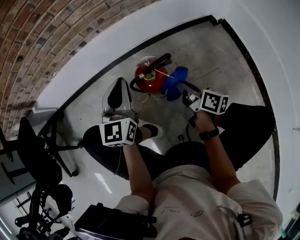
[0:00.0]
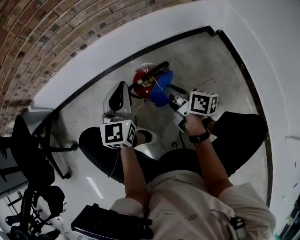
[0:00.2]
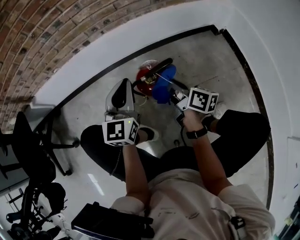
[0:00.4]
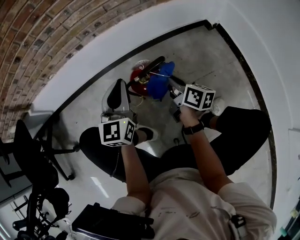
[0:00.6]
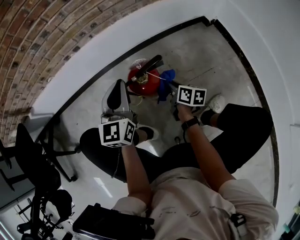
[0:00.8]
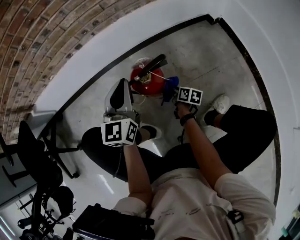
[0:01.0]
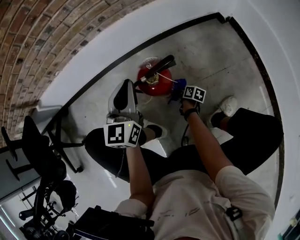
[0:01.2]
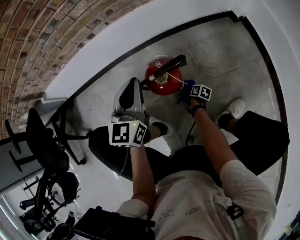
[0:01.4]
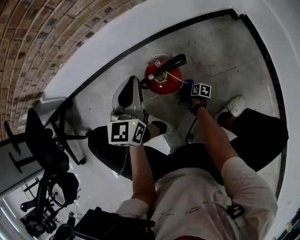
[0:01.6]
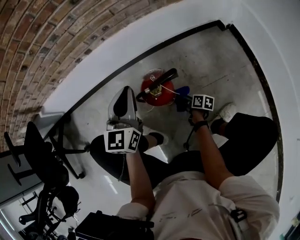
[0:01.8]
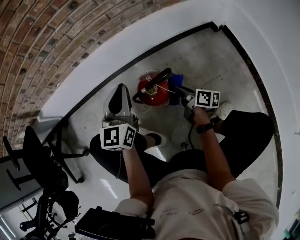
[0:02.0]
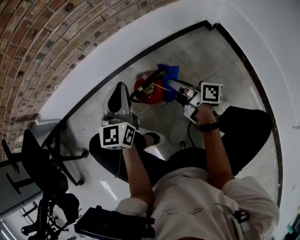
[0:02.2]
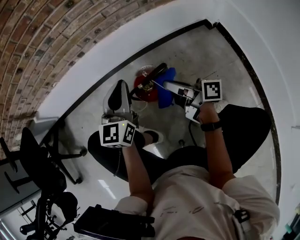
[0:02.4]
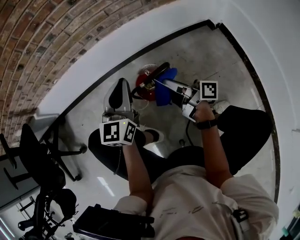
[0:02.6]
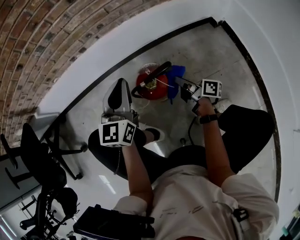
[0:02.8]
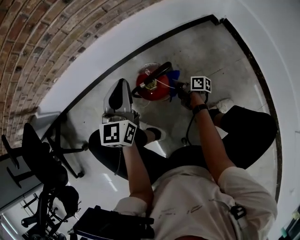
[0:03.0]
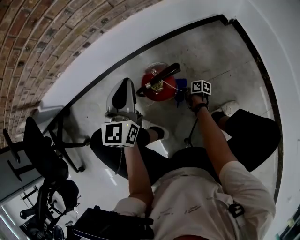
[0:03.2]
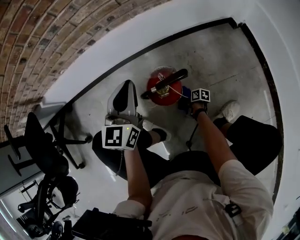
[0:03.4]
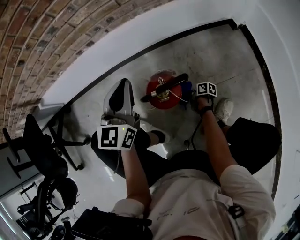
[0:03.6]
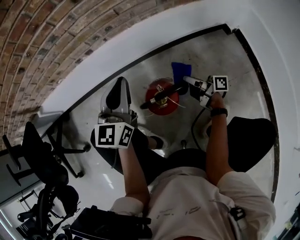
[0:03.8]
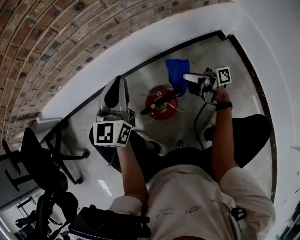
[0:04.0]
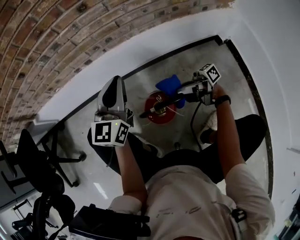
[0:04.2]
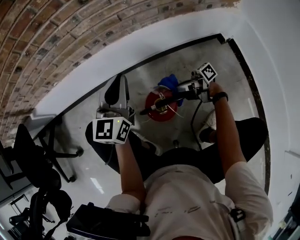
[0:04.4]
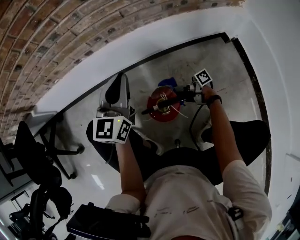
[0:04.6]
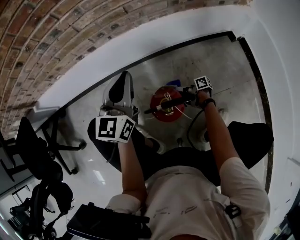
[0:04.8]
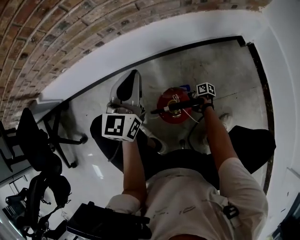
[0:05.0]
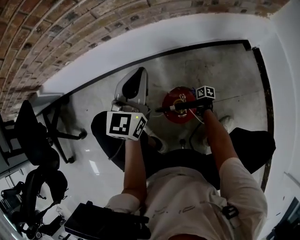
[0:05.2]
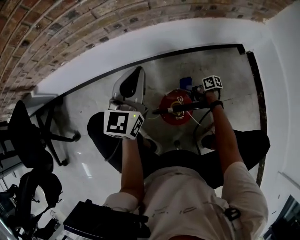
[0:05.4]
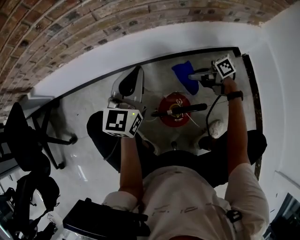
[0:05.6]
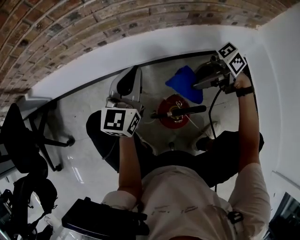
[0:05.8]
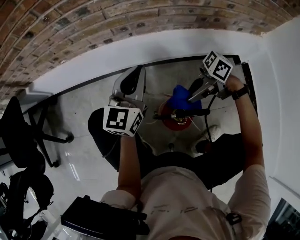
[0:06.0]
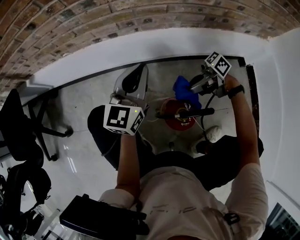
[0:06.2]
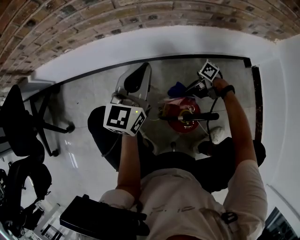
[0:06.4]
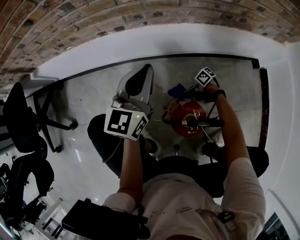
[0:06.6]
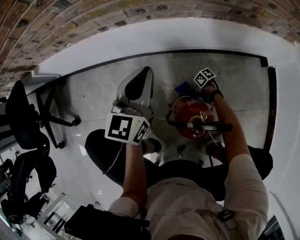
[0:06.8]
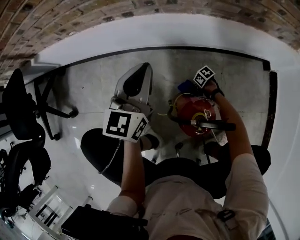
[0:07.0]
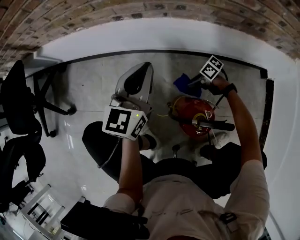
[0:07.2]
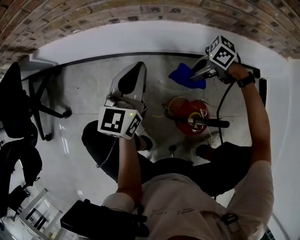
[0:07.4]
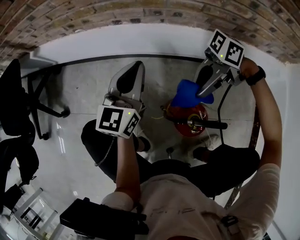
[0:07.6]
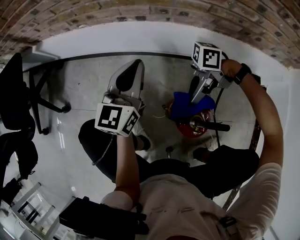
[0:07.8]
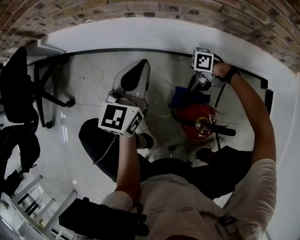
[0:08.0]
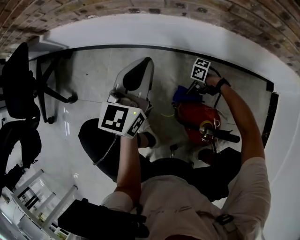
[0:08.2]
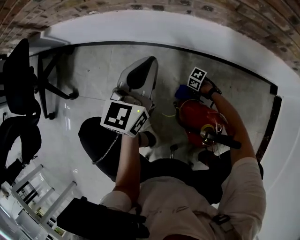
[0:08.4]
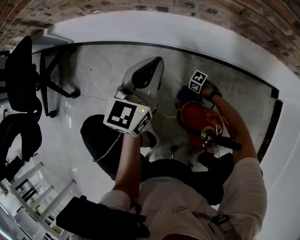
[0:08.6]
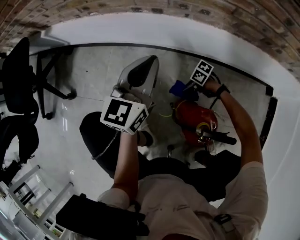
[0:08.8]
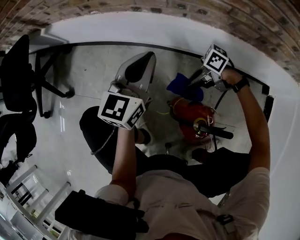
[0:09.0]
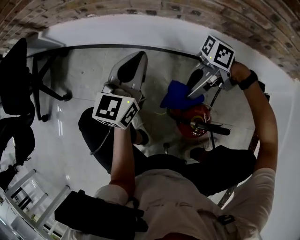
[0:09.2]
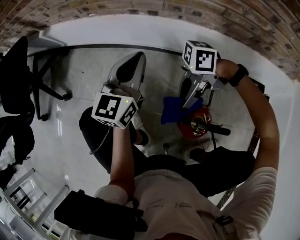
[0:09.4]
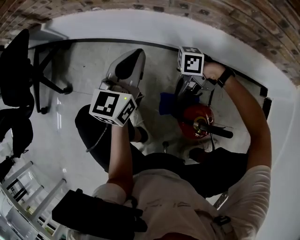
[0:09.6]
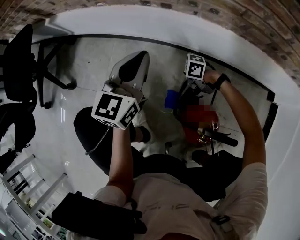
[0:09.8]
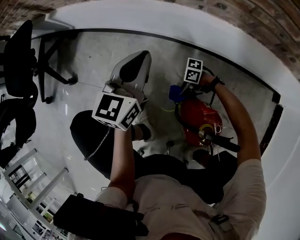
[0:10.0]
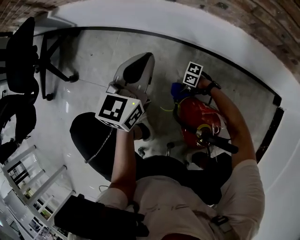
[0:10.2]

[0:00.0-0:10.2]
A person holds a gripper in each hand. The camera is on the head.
0.0 to 1.4 s: The right gripper heads downward, covering some 40 cm, and points its fingers some 40 degrees further downward.
1.4 to 3.0 s: The right gripper moves upward, about 20 cm, and angles its fingers upward, by about 30 degrees.
3.0 to 4.4 s: The right gripper goes up and down, about 40 cm each way, reversing 2 times, and swivels roughly 60 degrees. The left gripper moves forward, roughly 10 cm.
4.4 to 5.8 s: The right gripper goes downward and returns, some 35 cm each way, and swivels some 40 degrees.
5.8 to 7.2 s: The left gripper moves about 10 cm; the right gripper travels downward by roughly 30 cm, and turns by some 40 degrees.
7.2 to 8.8 s: The right gripper goes up and down, roughly 50 cm each way, reversing 2 times.
8.8 to 10.2 s: The right gripper goes upward and returns, some 30 cm each way; the left gripper moves about 5 cm.

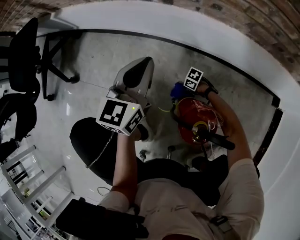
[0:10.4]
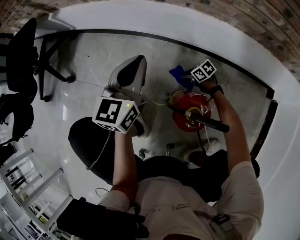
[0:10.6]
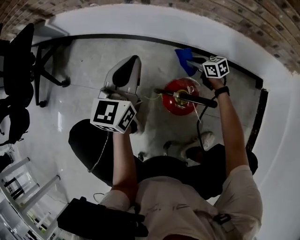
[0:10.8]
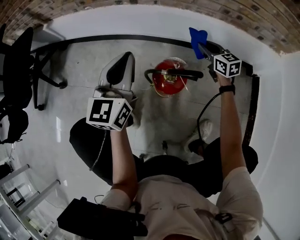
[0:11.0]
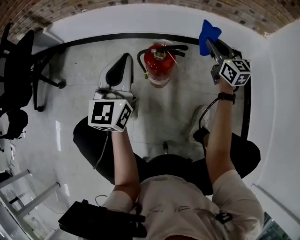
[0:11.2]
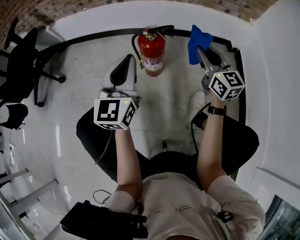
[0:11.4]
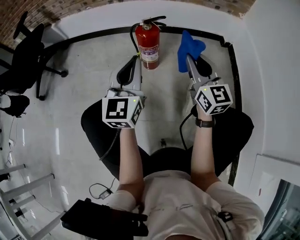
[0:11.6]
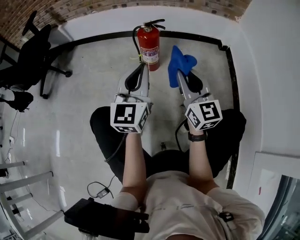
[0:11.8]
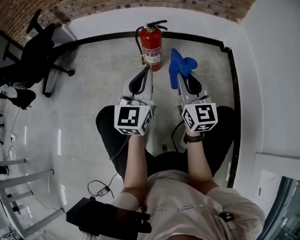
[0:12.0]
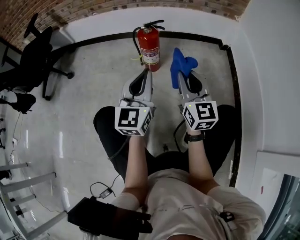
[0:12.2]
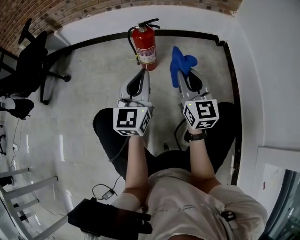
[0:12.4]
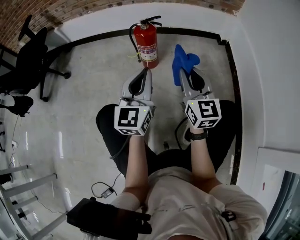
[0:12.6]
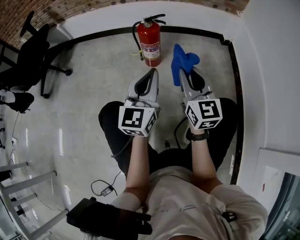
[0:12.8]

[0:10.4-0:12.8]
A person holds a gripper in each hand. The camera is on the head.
10.4 to 11.6 s: The left gripper moves roughly 50 cm, and swivels approximately 20 degrees, while the right gripper shifts roughly 60 cm upward, and points its fingers about 50 degrees further upward.
11.6 to 12.8 s: The grippers both shift backward by some 10 cm.

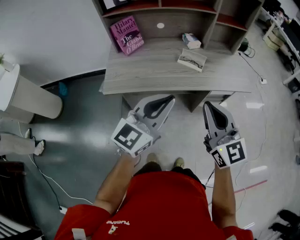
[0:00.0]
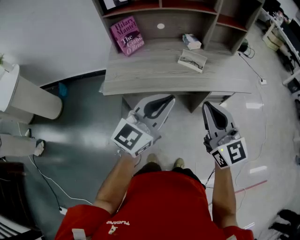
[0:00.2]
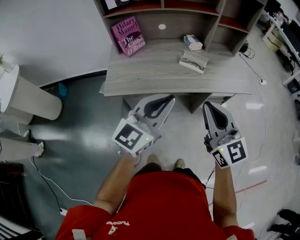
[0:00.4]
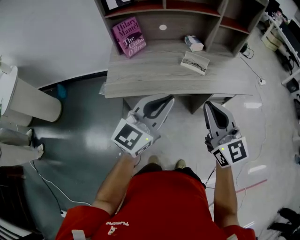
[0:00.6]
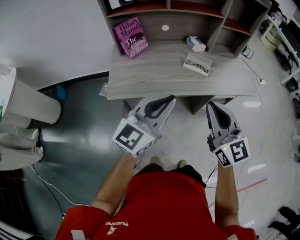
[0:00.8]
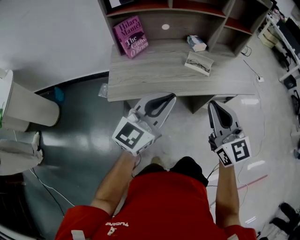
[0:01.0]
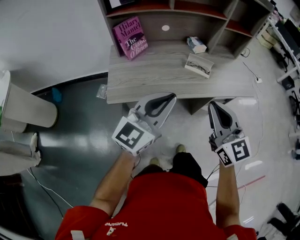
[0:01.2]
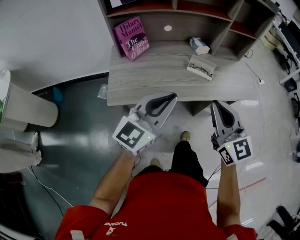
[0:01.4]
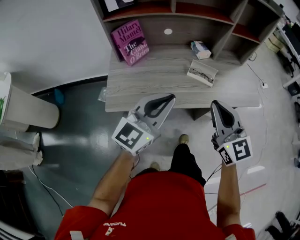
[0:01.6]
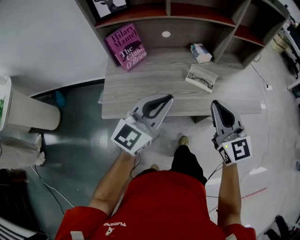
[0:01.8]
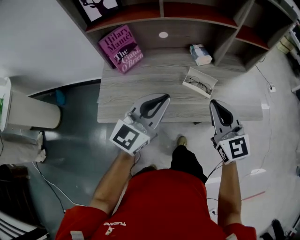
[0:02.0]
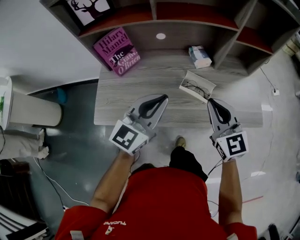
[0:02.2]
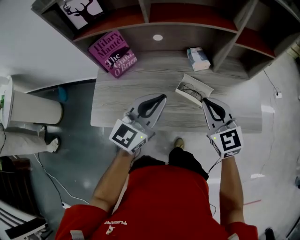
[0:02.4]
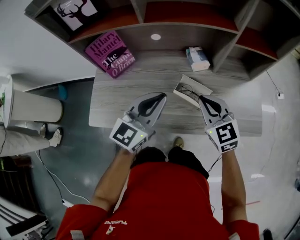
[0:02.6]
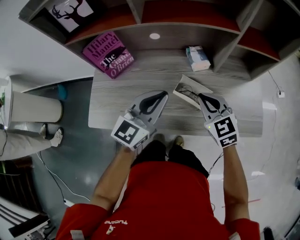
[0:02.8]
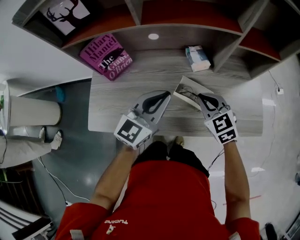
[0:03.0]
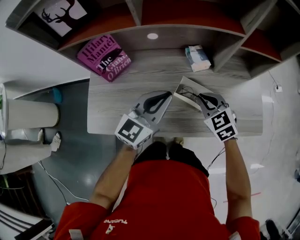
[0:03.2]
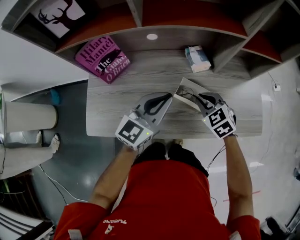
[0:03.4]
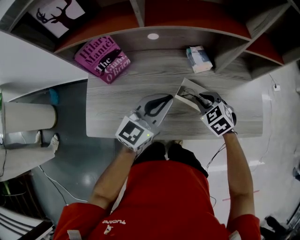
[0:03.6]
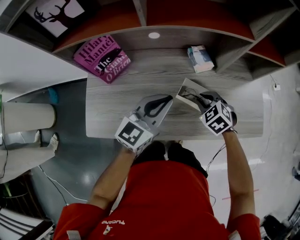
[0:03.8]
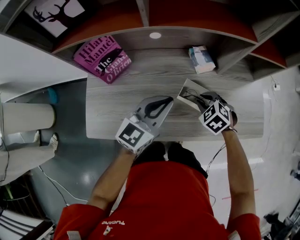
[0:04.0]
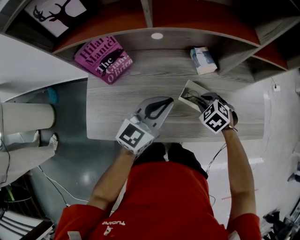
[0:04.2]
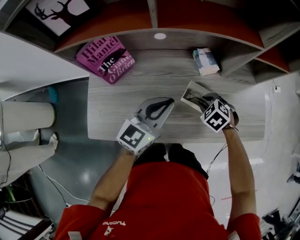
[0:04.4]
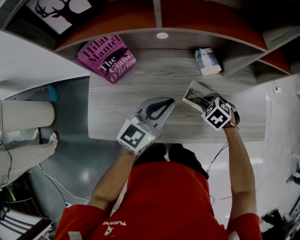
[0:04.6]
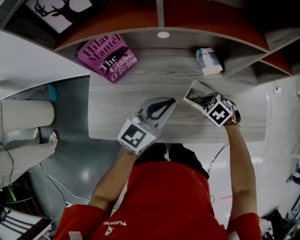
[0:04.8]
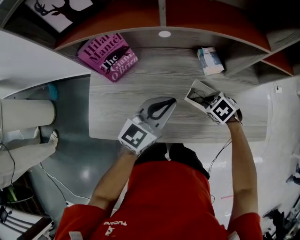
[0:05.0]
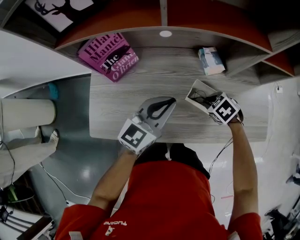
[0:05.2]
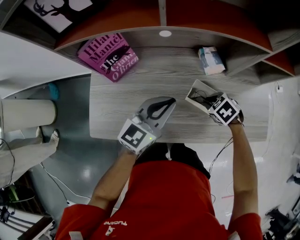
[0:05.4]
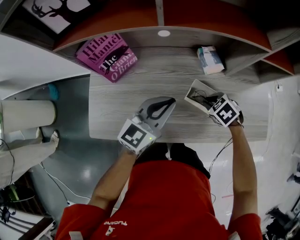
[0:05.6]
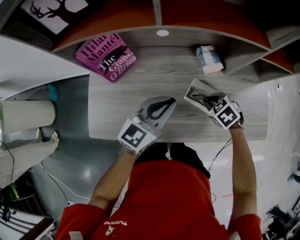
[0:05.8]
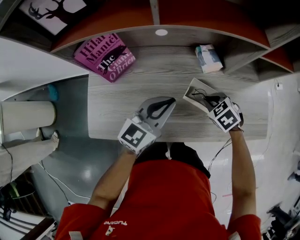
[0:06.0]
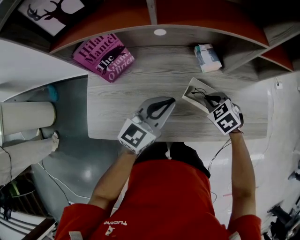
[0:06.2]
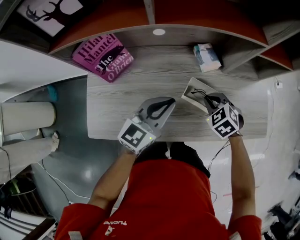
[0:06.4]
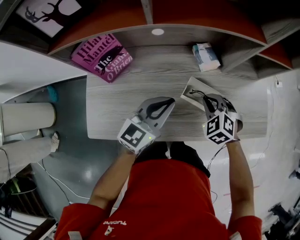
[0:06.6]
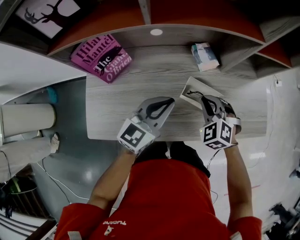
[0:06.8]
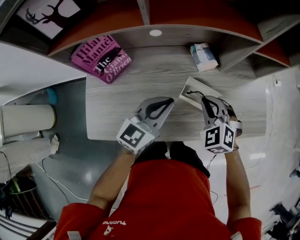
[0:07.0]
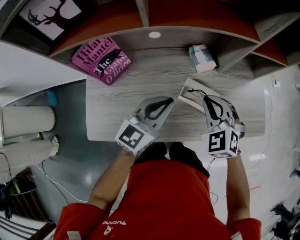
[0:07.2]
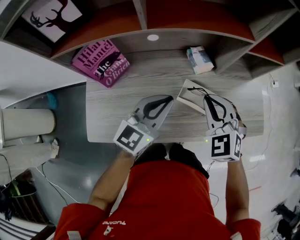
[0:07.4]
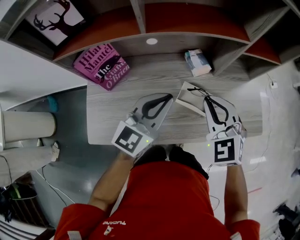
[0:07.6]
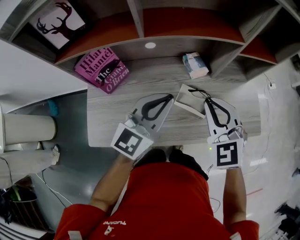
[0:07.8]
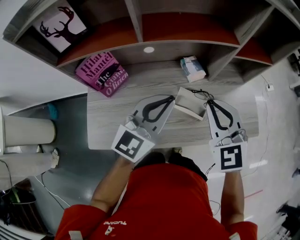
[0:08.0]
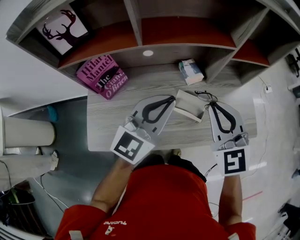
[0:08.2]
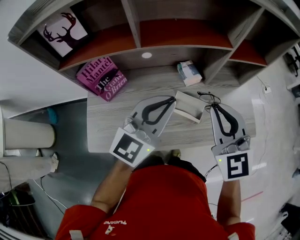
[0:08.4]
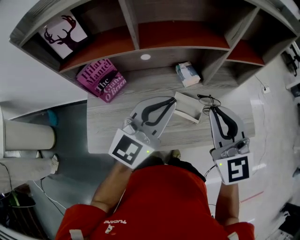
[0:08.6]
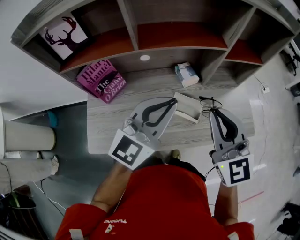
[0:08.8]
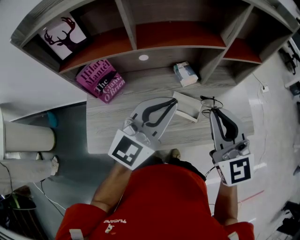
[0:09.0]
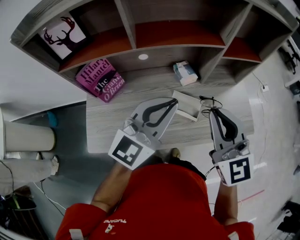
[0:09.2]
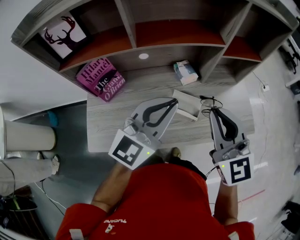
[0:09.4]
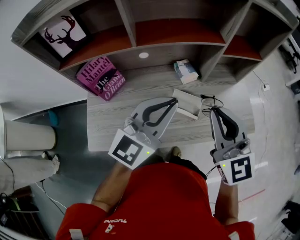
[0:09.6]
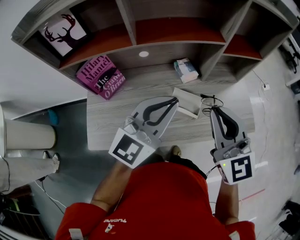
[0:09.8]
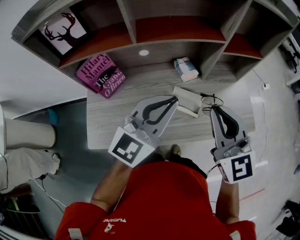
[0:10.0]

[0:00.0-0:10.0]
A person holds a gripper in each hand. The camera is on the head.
0.0 to 1.4 s: The left gripper goes approximately 10 cm to the left and forward; the right gripper travels forward and to the left by about 10 cm.
1.4 to 2.8 s: The left gripper is displaced forward and to the right by some 25 cm. The right gripper moves forward and downward, approximately 30 cm, and rotates some 30 degrees.
2.8 to 4.2 s: The left gripper travels downward by approximately 5 cm. Meanwhile the right gripper shifts some 15 cm downward, tips its fingers downward by about 40 degrees, and opens up.
4.2 to 5.8 s: The grippers make only small movements.
5.8 to 7.2 s: The right gripper travels upward by about 15 cm, and points its fingers approximately 30 degrees further upward.
7.2 to 8.6 s: The grippers both shift upward by approximately 15 cm. The right gripper swivels about 40 degrees.
8.6 to 10.0 s: There are only small adjustments of the grippers.

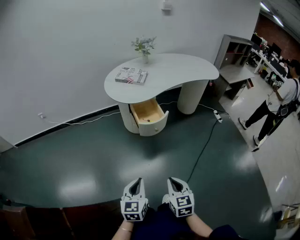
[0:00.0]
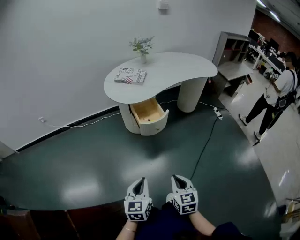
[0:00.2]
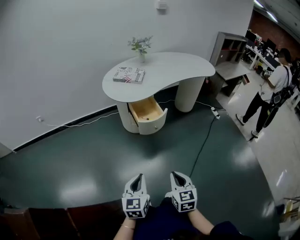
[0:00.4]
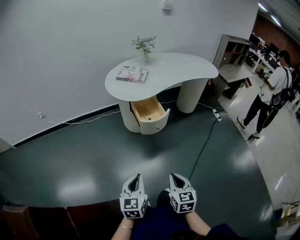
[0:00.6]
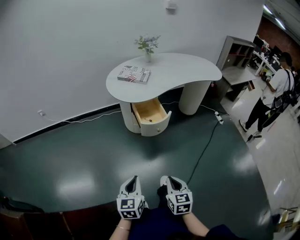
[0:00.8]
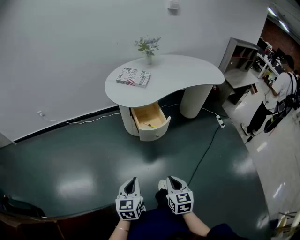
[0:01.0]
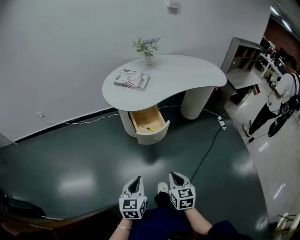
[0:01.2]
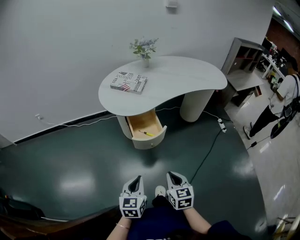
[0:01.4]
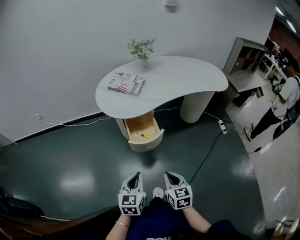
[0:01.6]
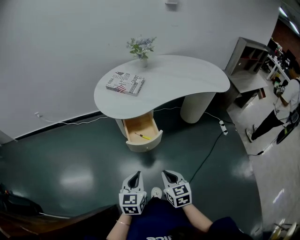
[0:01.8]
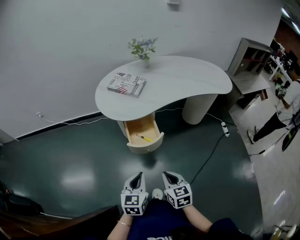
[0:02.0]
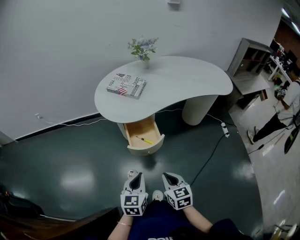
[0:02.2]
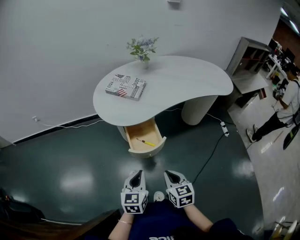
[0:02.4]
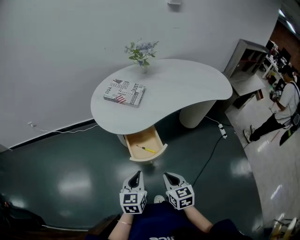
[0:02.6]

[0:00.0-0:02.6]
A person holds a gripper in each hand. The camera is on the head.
0.0 to 1.2 s: The right gripper shifts approximately 15 cm forward and to the right. The left gripper goes approximately 10 cm forward.
1.2 to 2.6 s: The two grippers go about 20 cm forward.
